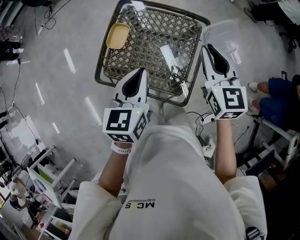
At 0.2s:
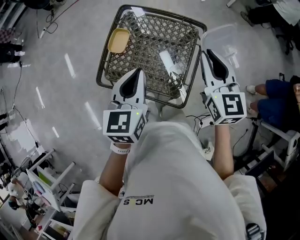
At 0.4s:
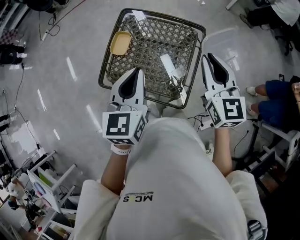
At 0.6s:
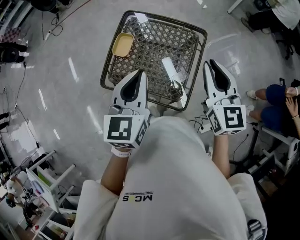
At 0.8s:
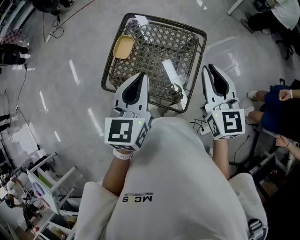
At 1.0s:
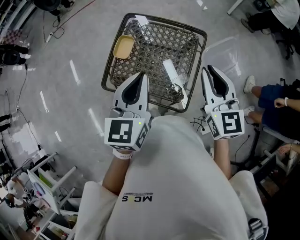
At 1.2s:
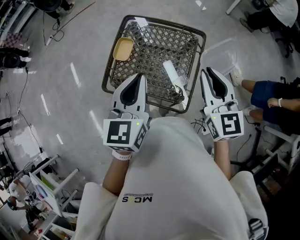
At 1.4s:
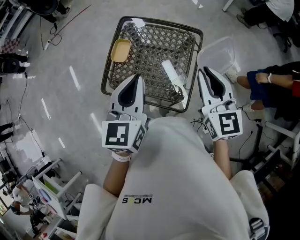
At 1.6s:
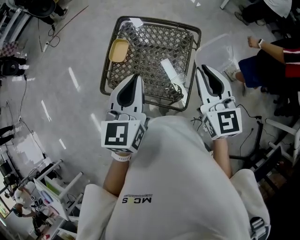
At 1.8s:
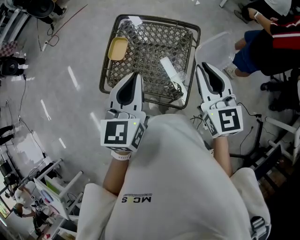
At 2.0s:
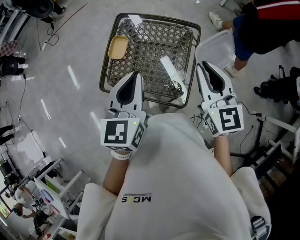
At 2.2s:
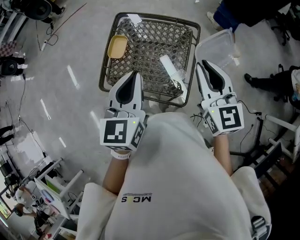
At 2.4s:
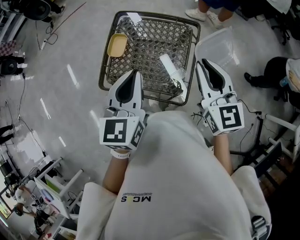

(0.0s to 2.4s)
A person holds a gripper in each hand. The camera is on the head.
0.0s - 1.2s: The left gripper goes roughly 10 cm upward. Meanwhile the right gripper is displaced backward and upward by approximately 10 cm.
1.2s - 2.4s: Neither gripper changes place.

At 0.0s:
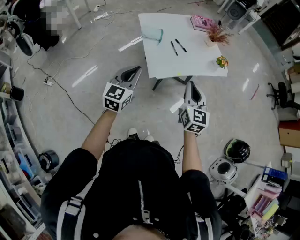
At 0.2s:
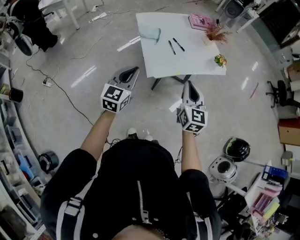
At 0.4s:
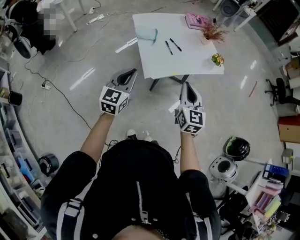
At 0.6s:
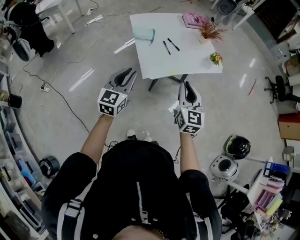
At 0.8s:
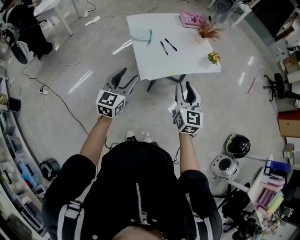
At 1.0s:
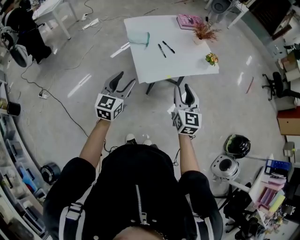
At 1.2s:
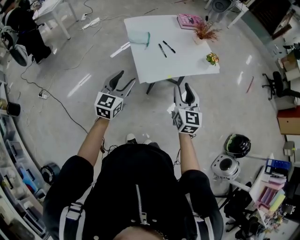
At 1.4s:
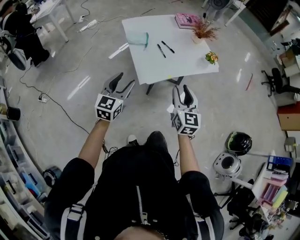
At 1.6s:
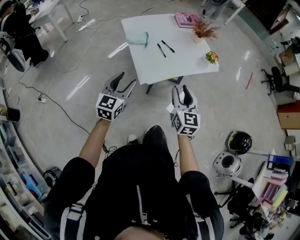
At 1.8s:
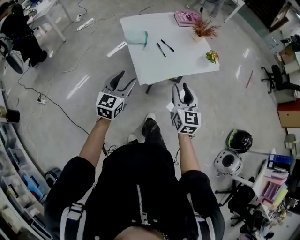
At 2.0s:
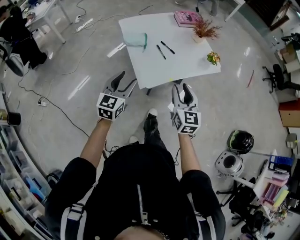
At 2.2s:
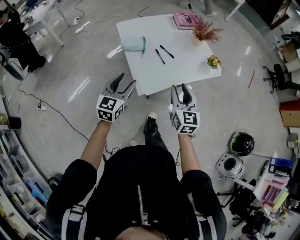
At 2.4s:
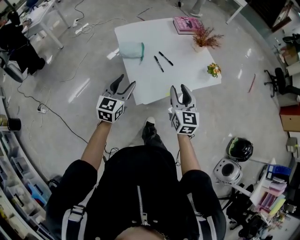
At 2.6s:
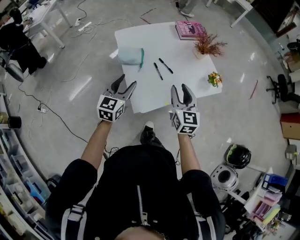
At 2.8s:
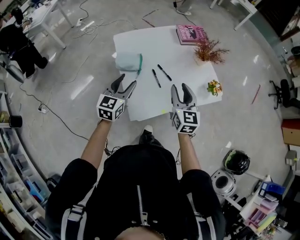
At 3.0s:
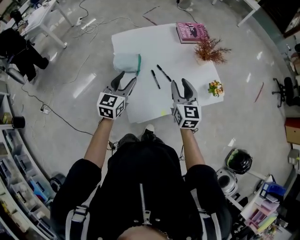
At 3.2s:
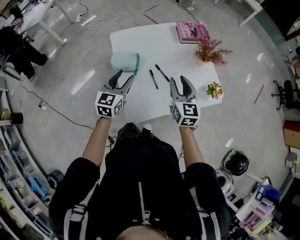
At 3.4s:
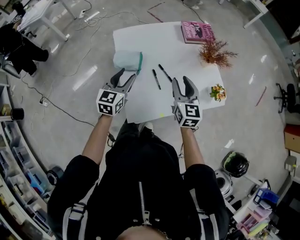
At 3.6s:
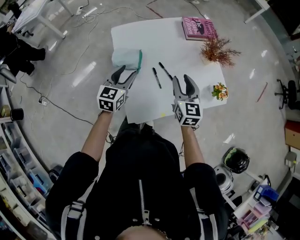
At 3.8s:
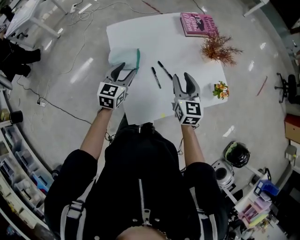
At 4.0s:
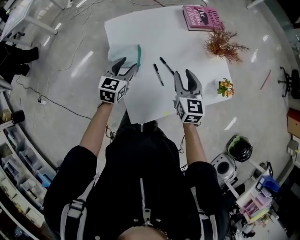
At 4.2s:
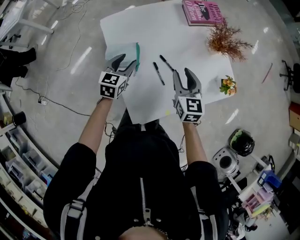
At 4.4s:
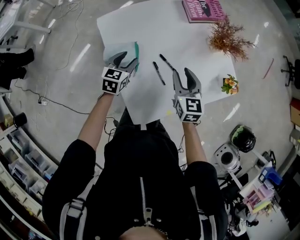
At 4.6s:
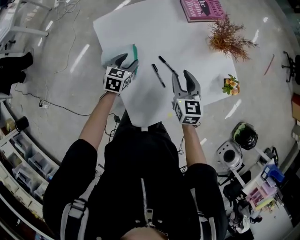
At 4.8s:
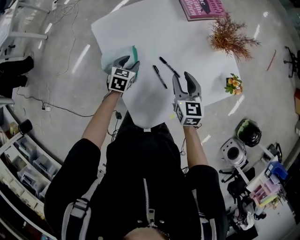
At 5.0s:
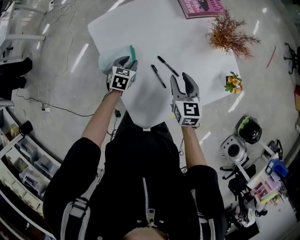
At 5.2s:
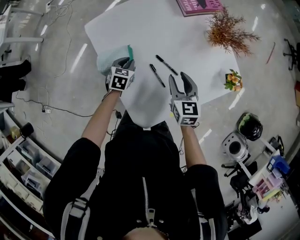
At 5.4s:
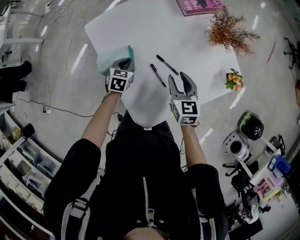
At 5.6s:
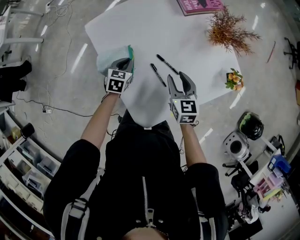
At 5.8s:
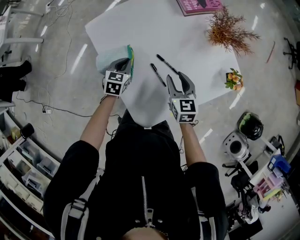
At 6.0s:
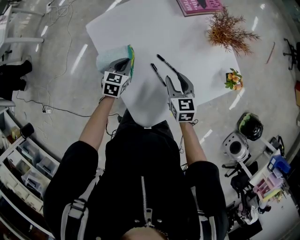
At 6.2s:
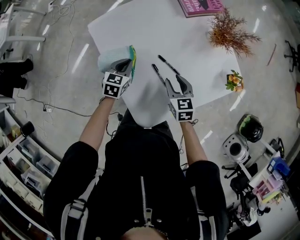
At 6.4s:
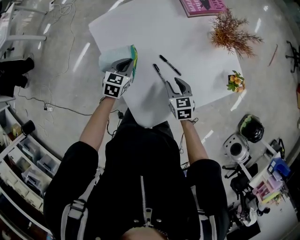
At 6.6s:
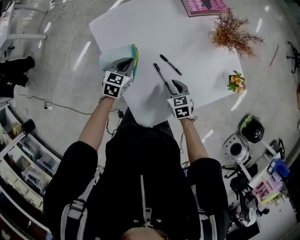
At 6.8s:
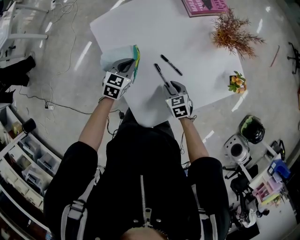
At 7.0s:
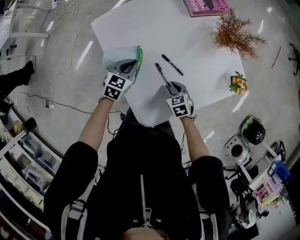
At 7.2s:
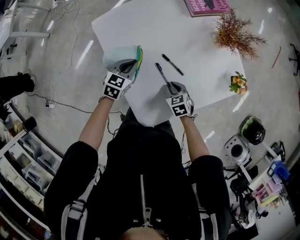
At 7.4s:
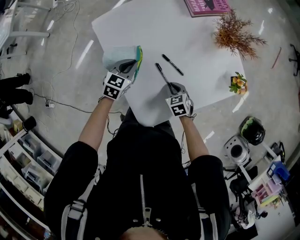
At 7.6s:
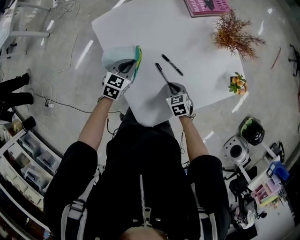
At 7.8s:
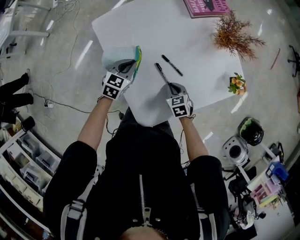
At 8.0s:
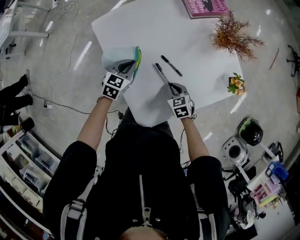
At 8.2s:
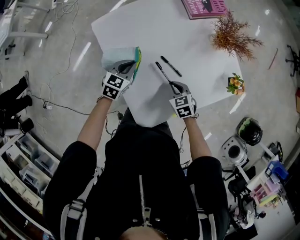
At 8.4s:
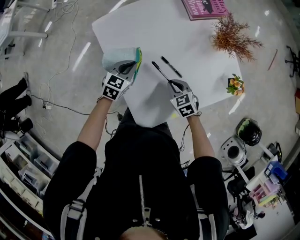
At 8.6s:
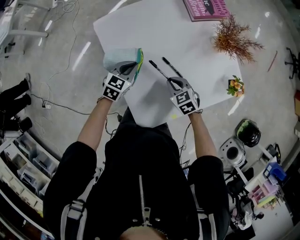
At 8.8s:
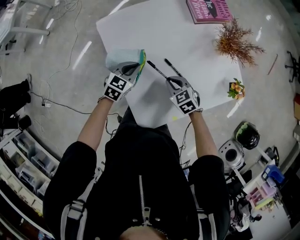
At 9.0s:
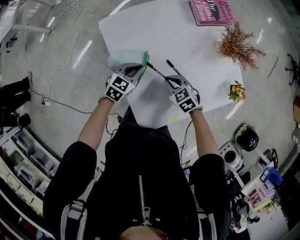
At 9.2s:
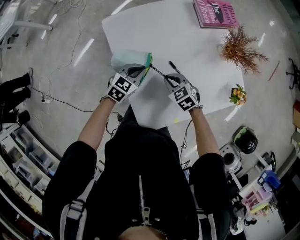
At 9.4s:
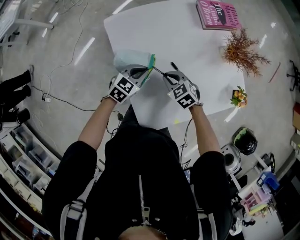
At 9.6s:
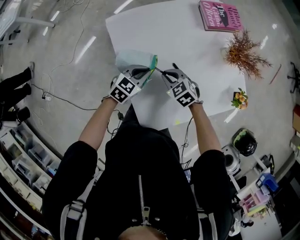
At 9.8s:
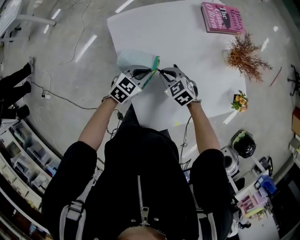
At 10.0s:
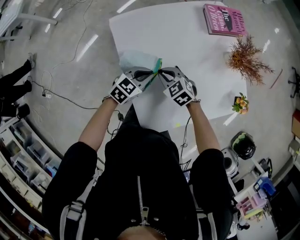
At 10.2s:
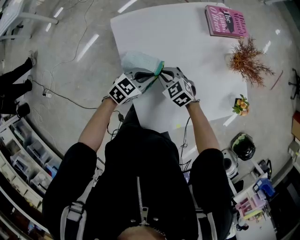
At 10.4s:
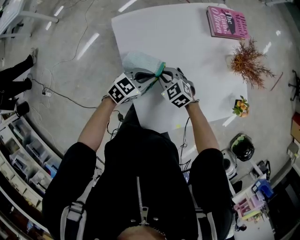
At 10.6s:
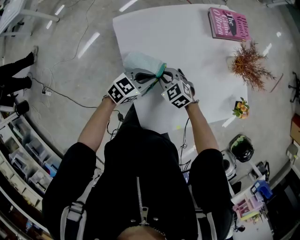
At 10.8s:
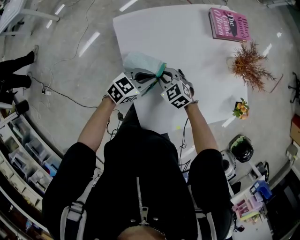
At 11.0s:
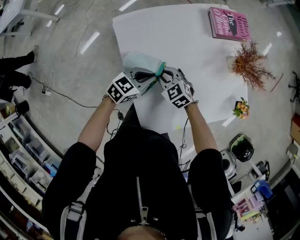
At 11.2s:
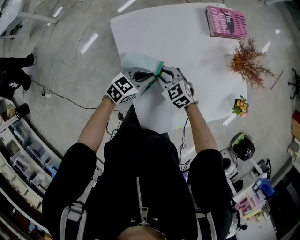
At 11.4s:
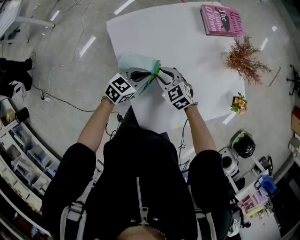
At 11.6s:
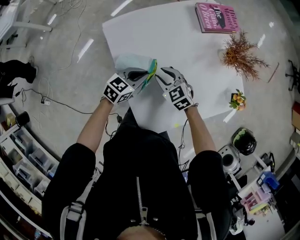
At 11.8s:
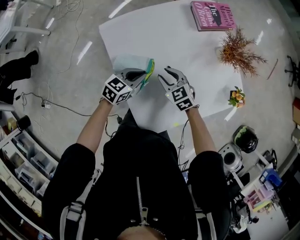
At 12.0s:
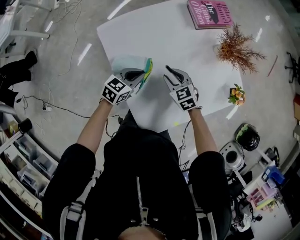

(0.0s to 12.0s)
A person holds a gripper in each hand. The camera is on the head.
0.0s - 1.6s: The right gripper opens its fingers; the left gripper opens.
1.6s - 3.0s: Both grippers travel together forward, some 30 cm.
3.0s - 4.4s: The left gripper is displaced forward and downward by about 25 cm, and turns by approximately 20 degrees; the right gripper heads forward and downward, covering about 15 cm.
4.4s - 6.0s: Both grippers move downward, some 5 cm. The left gripper closes.
6.0s - 7.6s: The right gripper is displaced downward and backward by approximately 15 cm, rotates roughly 20 degrees, and closes.
7.6s - 9.0s: The right gripper heads upward and forward, covering some 10 cm, and changes its angle by roughly 20 degrees.
9.0s - 10.4s: The right gripper travels to the left and forward by roughly 10 cm.
10.4s - 12.0s: The right gripper goes approximately 10 cm to the right, rotates roughly 20 degrees, and opens.

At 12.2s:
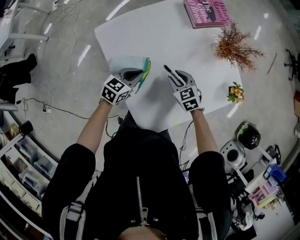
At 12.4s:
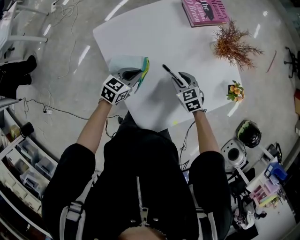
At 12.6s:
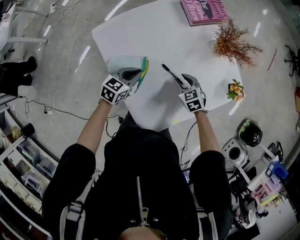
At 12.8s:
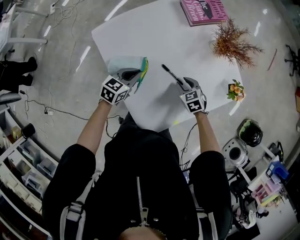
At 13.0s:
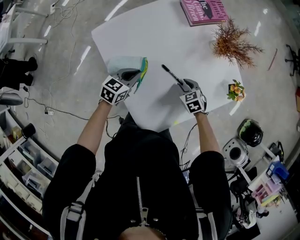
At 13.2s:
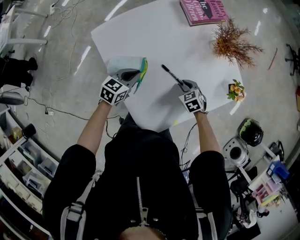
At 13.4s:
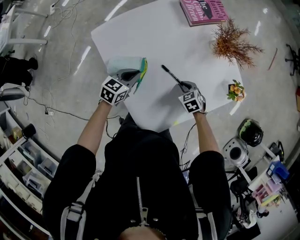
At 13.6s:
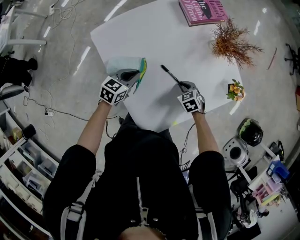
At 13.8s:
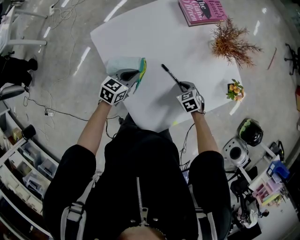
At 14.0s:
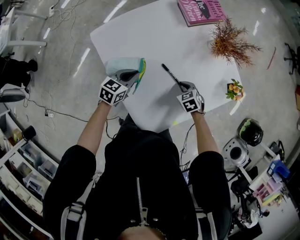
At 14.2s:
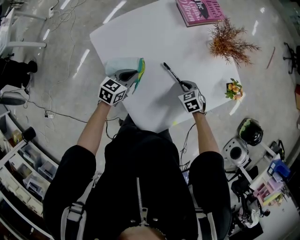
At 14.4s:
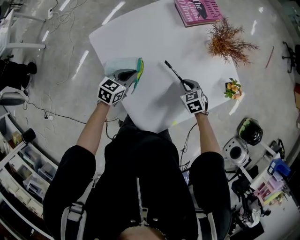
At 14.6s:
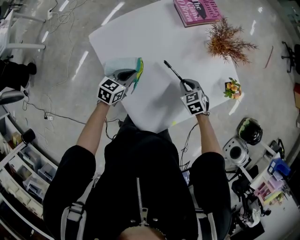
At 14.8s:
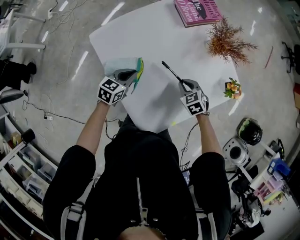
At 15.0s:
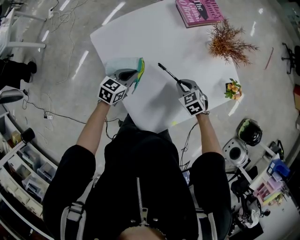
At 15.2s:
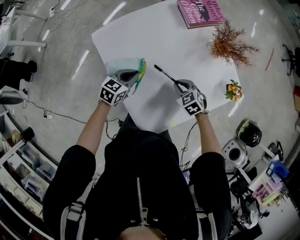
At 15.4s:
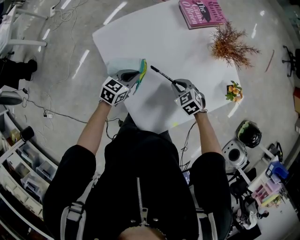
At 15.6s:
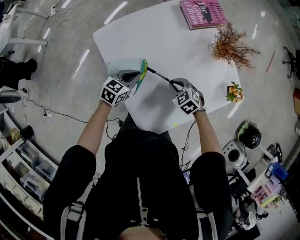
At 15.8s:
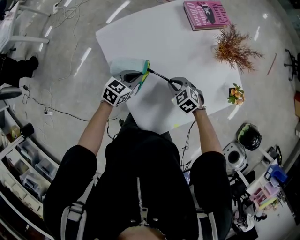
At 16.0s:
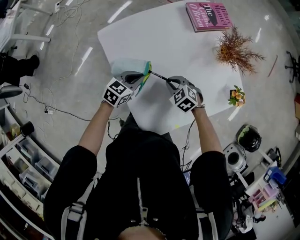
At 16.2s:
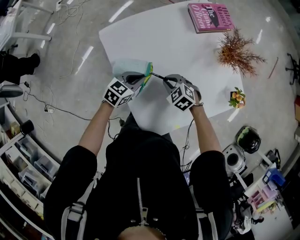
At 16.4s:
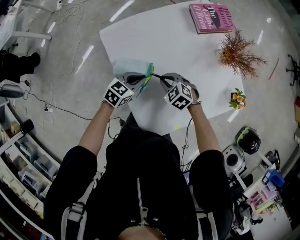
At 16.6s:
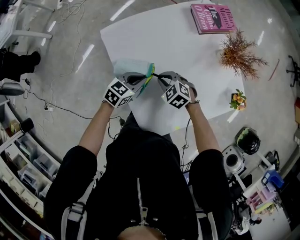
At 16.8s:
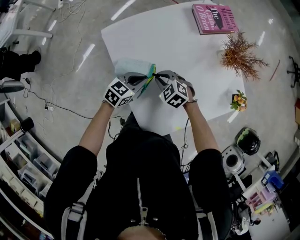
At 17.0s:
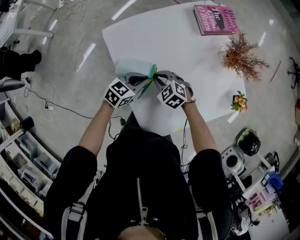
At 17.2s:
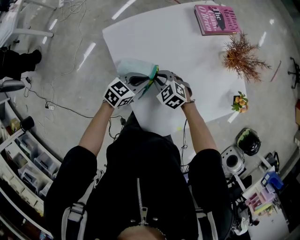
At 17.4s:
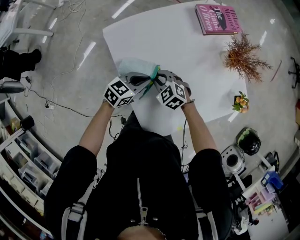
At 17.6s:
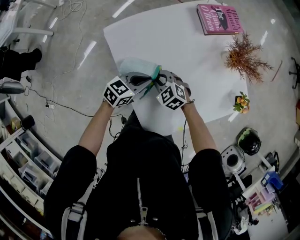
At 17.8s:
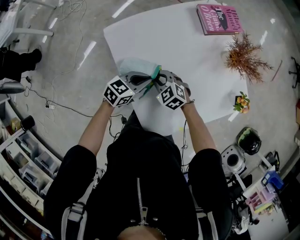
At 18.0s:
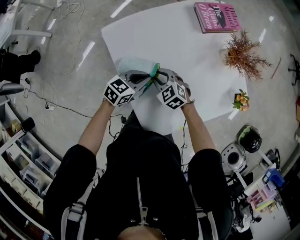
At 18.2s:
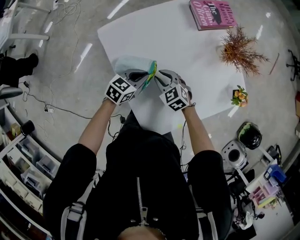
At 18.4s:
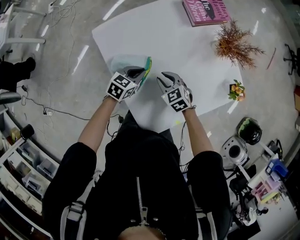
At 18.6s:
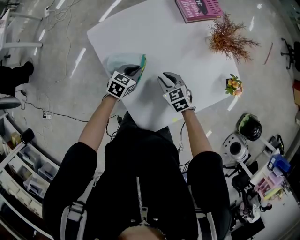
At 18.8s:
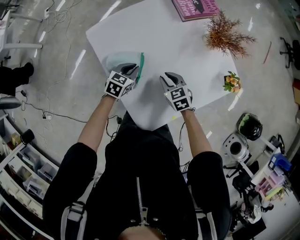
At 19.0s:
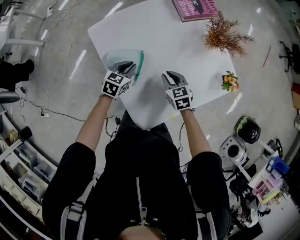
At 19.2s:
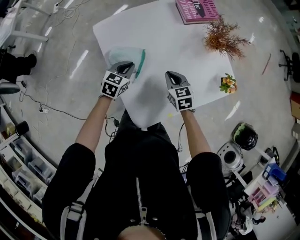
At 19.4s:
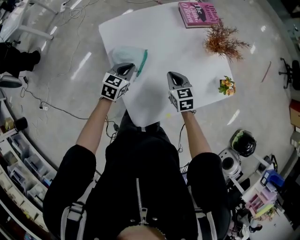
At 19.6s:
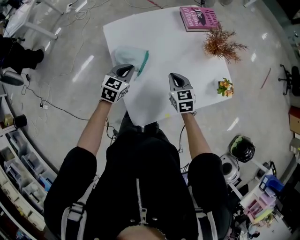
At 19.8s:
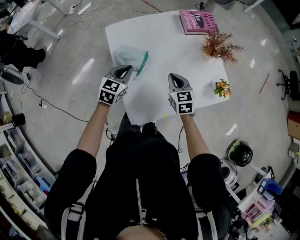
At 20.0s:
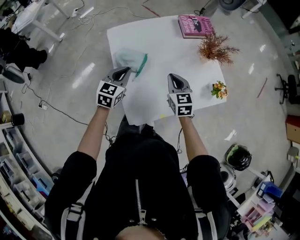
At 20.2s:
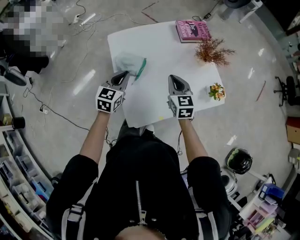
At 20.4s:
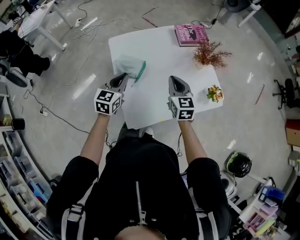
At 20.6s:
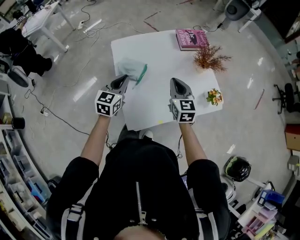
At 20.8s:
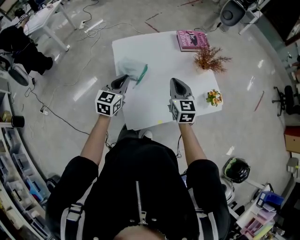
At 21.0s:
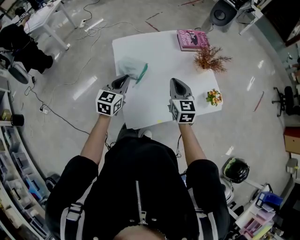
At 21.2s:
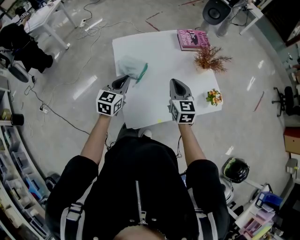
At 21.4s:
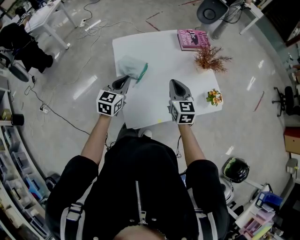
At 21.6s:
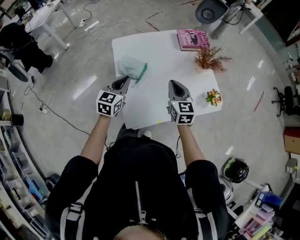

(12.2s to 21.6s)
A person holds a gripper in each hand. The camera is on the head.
12.2s - 13.8s: The right gripper goes about 10 cm to the right and downward, and closes.
13.8s - 15.4s: The right gripper heads upward and to the left, covering roughly 10 cm.
15.4s - 17.0s: The right gripper travels to the left by some 15 cm.
17.0s - 18.4s: The right gripper heads to the right, covering some 5 cm.
18.4s - 20.0s: The right gripper is displaced upward, to the right and backward by roughly 20 cm, rotates approximately 20 degrees, and closes its fingers; the left gripper travels upward and backward by some 20 cm, and rotates some 30 degrees.
20.0s - 21.6s: The right gripper heads upward, covering about 5 cm, while the left gripper changes place by roughly 5 cm.
